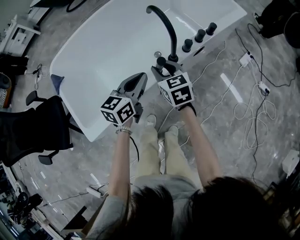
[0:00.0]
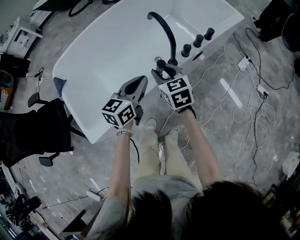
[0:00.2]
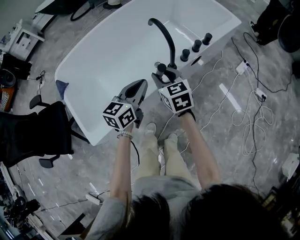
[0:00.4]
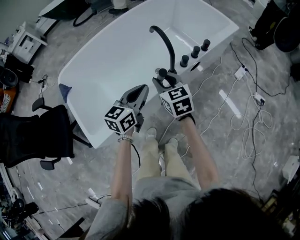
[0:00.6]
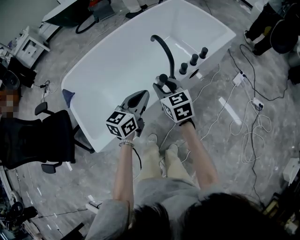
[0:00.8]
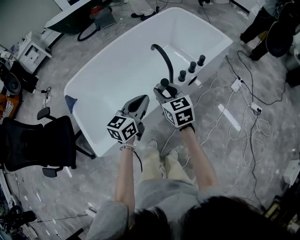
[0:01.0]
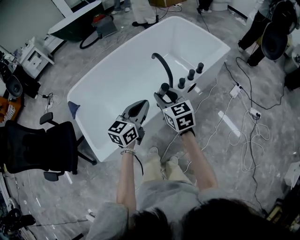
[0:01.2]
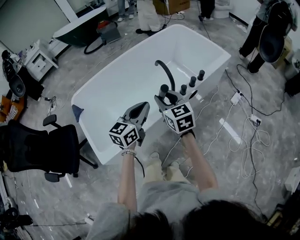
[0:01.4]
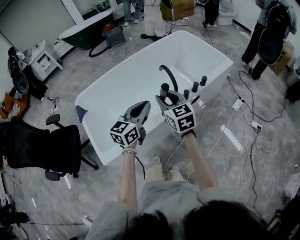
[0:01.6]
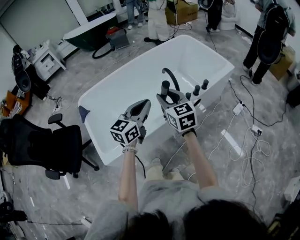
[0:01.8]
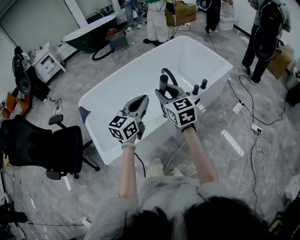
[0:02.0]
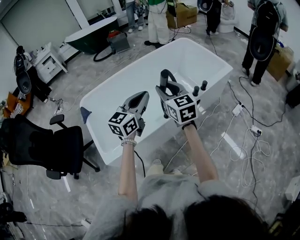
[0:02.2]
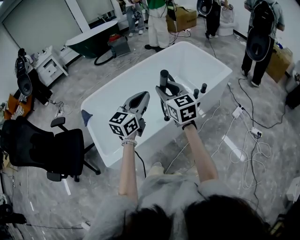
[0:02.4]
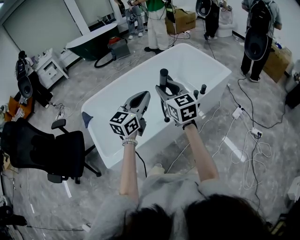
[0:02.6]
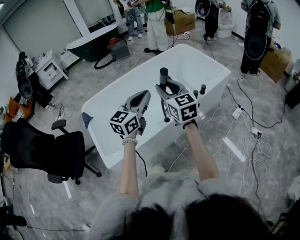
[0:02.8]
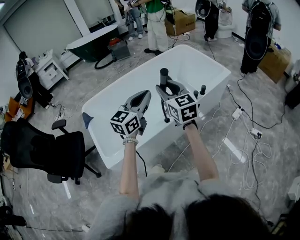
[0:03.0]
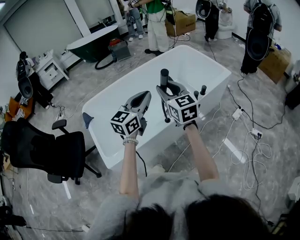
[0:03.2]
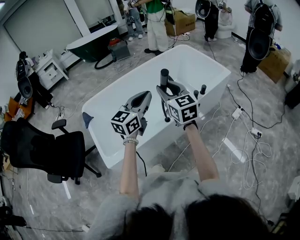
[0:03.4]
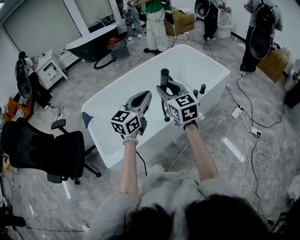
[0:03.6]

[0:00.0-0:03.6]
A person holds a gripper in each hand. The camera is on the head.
0:00.0 to 0:01.8: The two grippers go roughly 25 cm upward.
0:01.8 to 0:03.6: Both grippers travel together upward, about 5 cm.

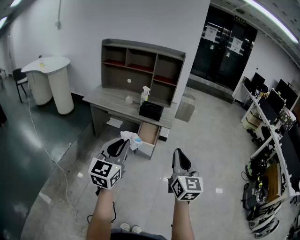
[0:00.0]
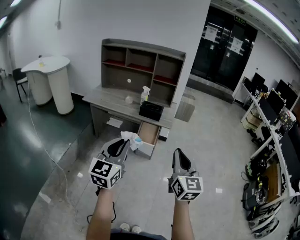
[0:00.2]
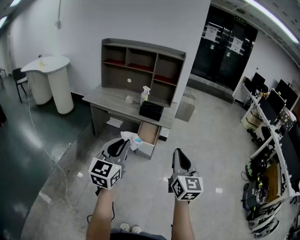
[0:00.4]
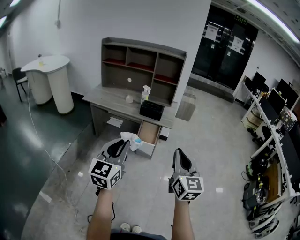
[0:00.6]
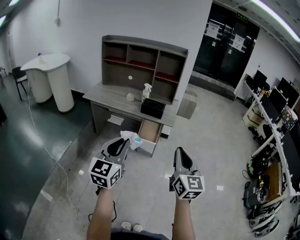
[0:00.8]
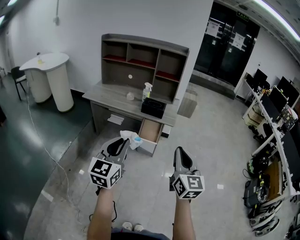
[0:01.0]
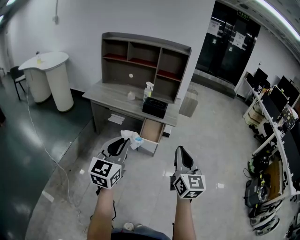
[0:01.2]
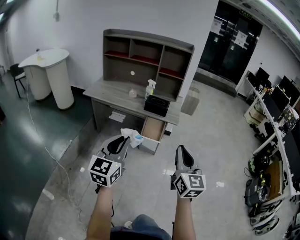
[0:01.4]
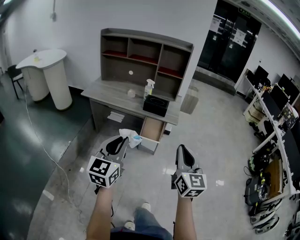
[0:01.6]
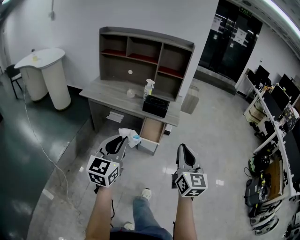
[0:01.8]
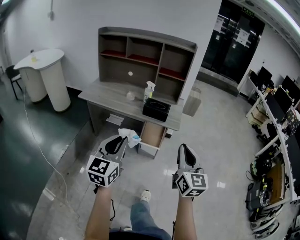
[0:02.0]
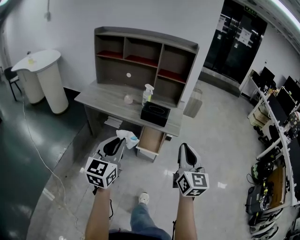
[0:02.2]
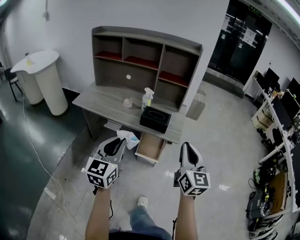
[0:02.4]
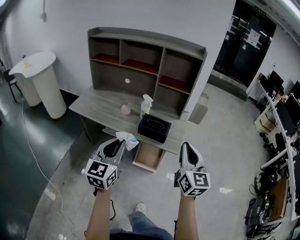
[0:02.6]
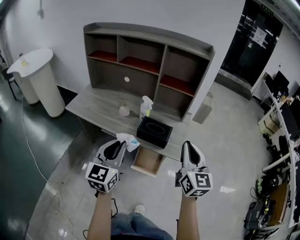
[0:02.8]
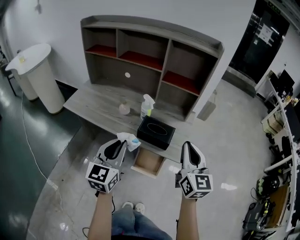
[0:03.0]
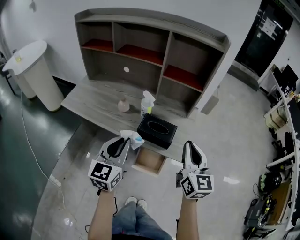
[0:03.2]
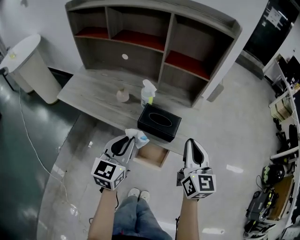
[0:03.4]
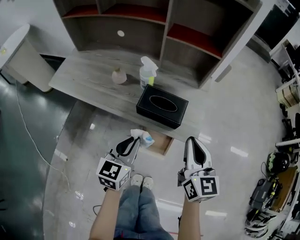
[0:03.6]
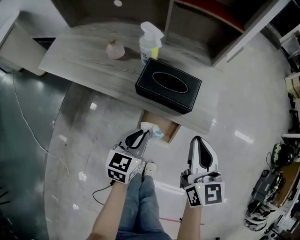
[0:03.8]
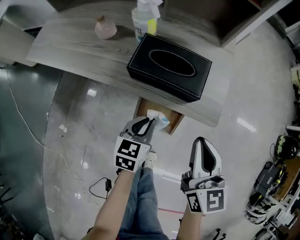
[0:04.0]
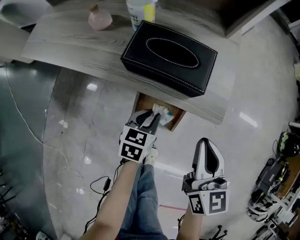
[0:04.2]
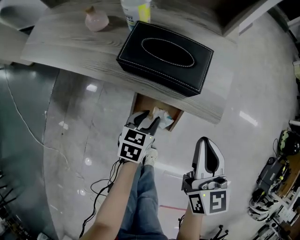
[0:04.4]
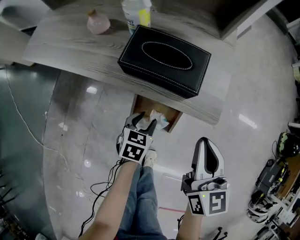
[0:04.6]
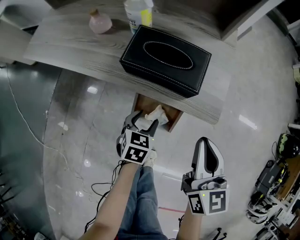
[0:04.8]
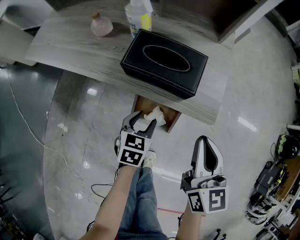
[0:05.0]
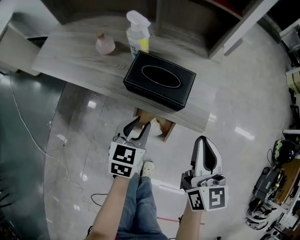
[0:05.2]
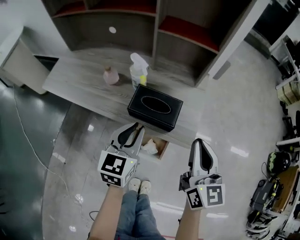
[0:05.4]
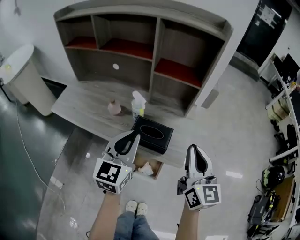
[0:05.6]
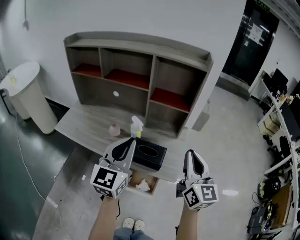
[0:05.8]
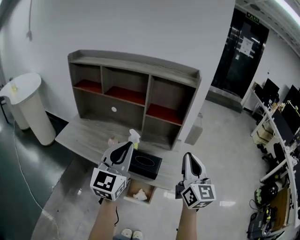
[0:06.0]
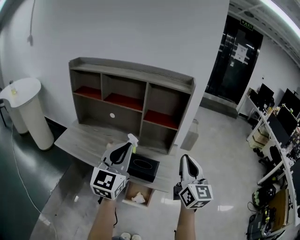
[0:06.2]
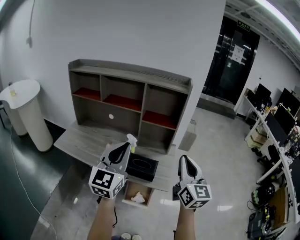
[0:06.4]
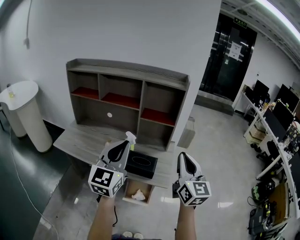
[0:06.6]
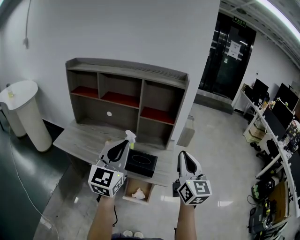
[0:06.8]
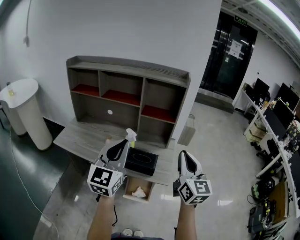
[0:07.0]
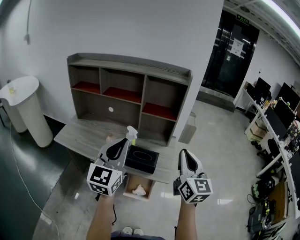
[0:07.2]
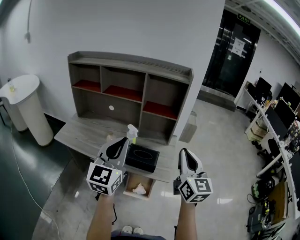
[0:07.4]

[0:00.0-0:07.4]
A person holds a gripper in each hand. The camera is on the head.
0:00.0 to 0:01.4: Both grippers travel together forward, approximately 5 cm.
0:01.4 to 0:03.0: The two grippers travel together, forward, about 40 cm.
0:03.0 to 0:04.4: The right gripper shifts roughly 30 cm downward, and turns by roughly 20 degrees; the left gripper heads downward, covering about 40 cm, tilts its fingers roughly 40 degrees downward, and opens.
0:04.4 to 0:06.0: The left gripper travels upward by roughly 50 cm, tilts its fingers about 50 degrees upward, and closes its fingers. Meanwhile the right gripper heads upward, covering some 35 cm, and rotates about 30 degrees.
0:06.0 to 0:07.4: The grippers move only a little.

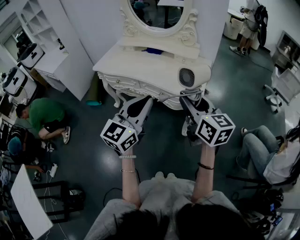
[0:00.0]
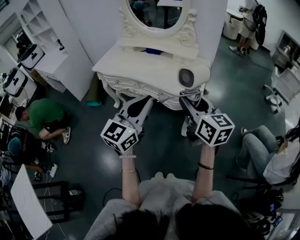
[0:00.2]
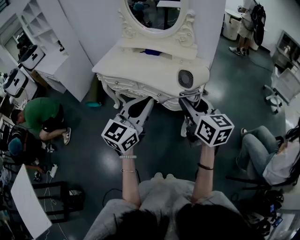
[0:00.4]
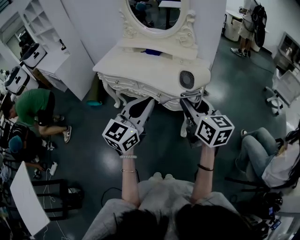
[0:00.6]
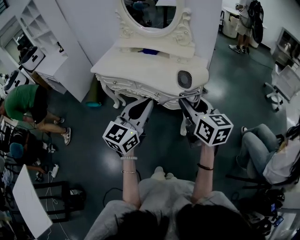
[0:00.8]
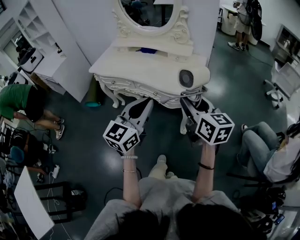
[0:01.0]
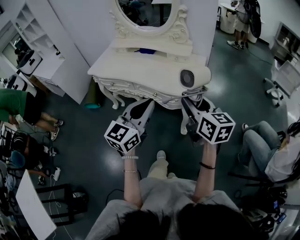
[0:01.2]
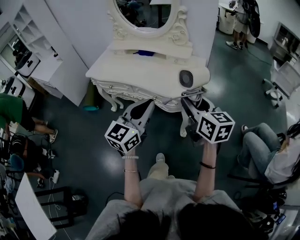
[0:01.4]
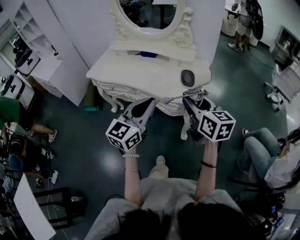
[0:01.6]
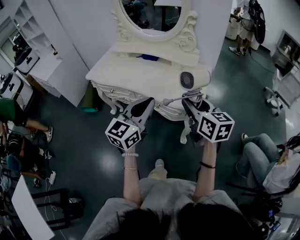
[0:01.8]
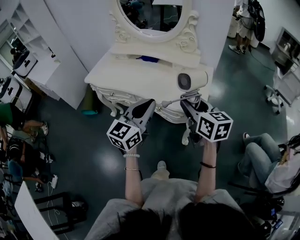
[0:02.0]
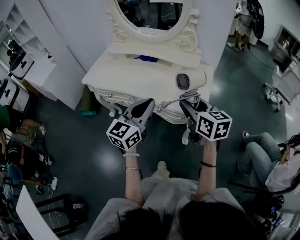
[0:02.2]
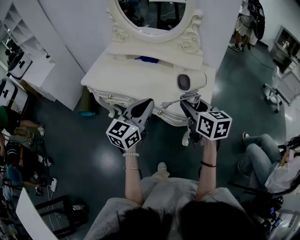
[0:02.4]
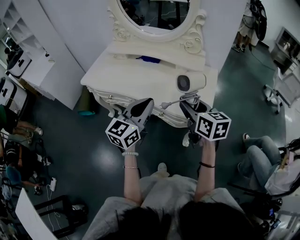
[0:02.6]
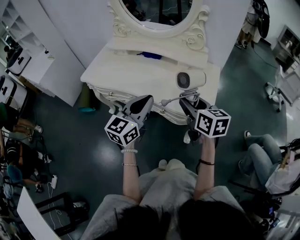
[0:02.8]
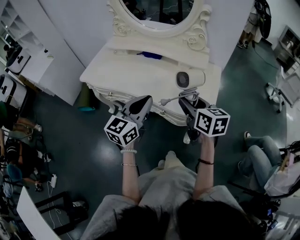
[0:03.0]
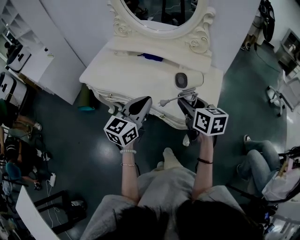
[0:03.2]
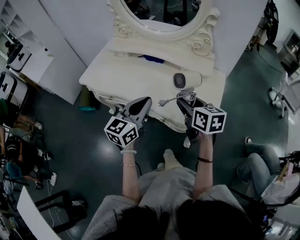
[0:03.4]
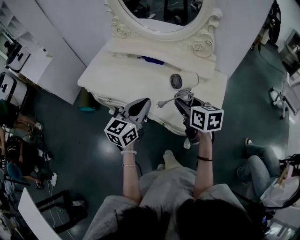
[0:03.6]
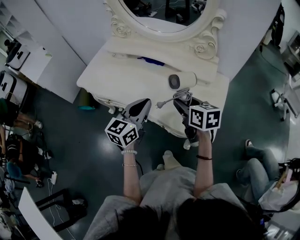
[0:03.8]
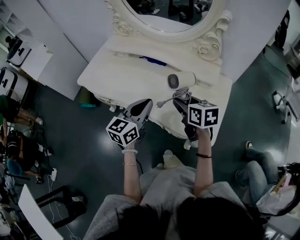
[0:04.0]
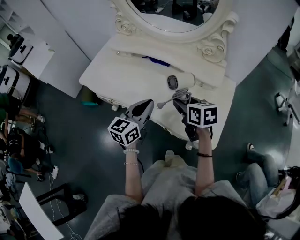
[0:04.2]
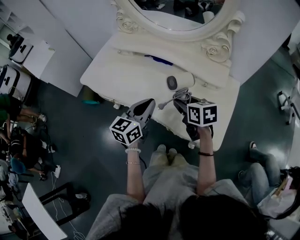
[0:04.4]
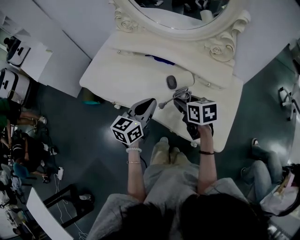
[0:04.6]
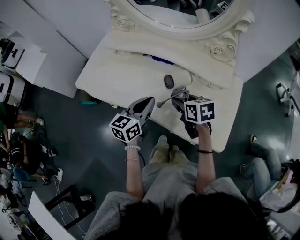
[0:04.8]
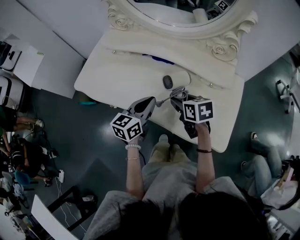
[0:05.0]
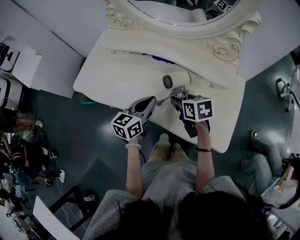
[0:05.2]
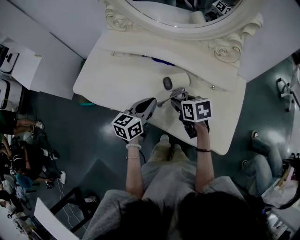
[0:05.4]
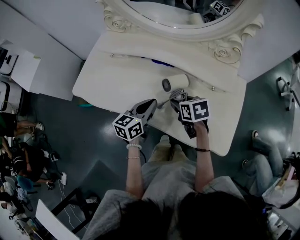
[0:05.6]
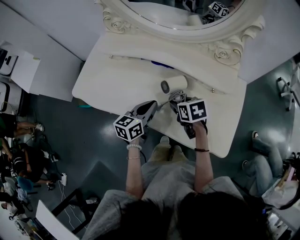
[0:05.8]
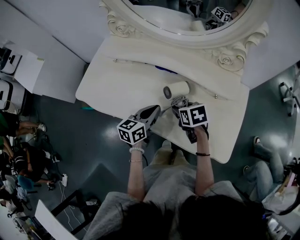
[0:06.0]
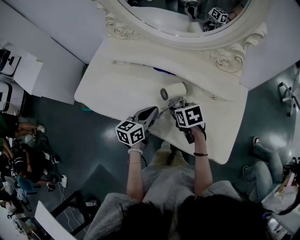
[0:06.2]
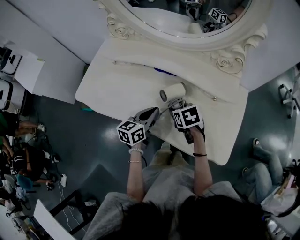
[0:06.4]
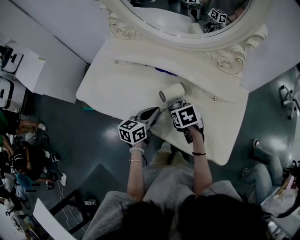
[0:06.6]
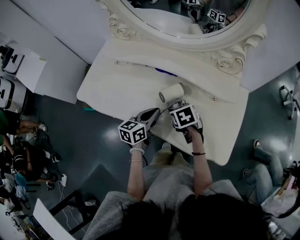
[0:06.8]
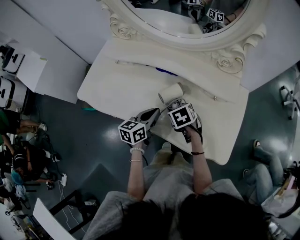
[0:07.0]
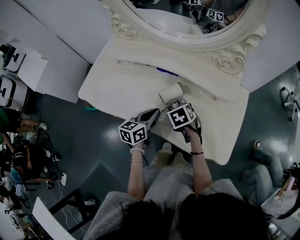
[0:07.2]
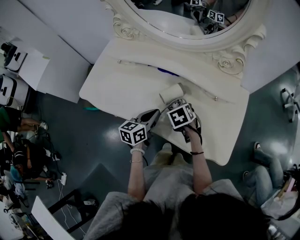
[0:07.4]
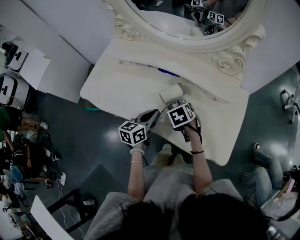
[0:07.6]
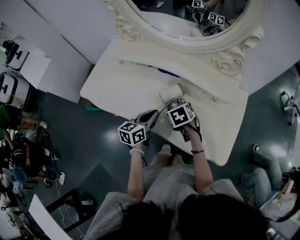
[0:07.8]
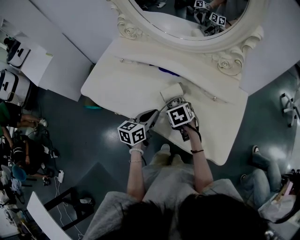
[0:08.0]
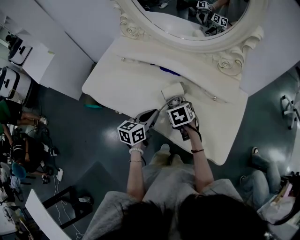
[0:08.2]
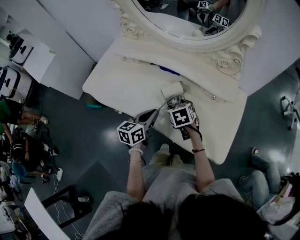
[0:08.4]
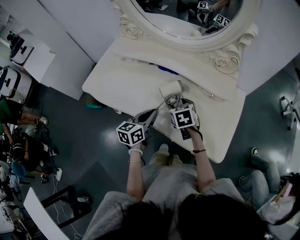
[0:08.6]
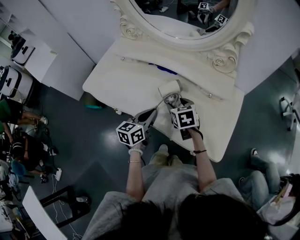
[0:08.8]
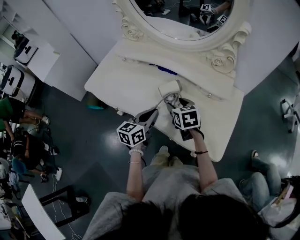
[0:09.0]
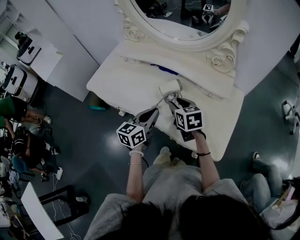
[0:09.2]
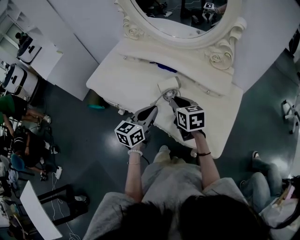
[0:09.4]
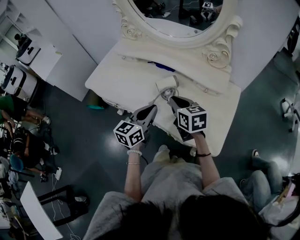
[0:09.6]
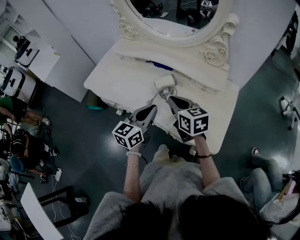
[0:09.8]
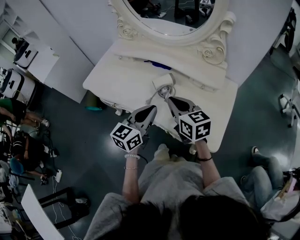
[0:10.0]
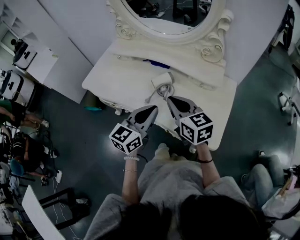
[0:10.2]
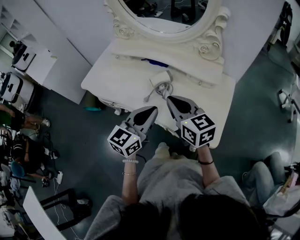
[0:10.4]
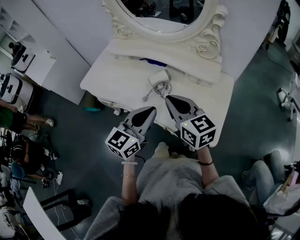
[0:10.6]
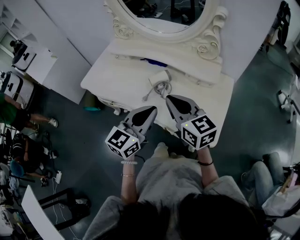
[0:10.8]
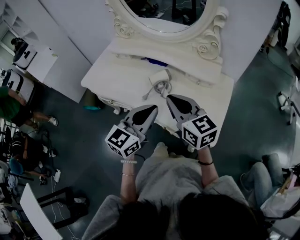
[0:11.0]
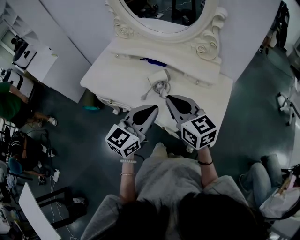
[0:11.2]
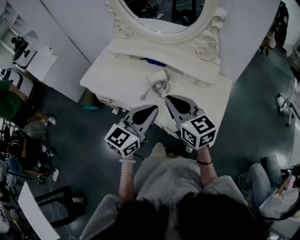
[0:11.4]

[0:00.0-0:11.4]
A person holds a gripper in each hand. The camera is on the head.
0:00.0 to 0:01.4: The left gripper shifts about 5 cm to the right and forward. The right gripper heads to the right, covering roughly 5 cm.
0:01.4 to 0:02.8: The left gripper travels forward and to the left by approximately 20 cm. Meanwhile the right gripper shifts approximately 20 cm forward, to the left and downward.
0:02.8 to 0:04.2: The two grippers go about 20 cm forward and downward.
0:04.2 to 0:05.6: The left gripper goes some 15 cm forward and downward. The right gripper is displaced downward, forward and to the left by roughly 15 cm.
0:05.6 to 0:07.2: The right gripper rotates about 20 degrees.
0:07.2 to 0:08.6: The grippers stay close to where they were, moving slightly.
0:08.6 to 0:10.0: The right gripper shifts approximately 20 cm upward and backward, tips its fingers upward by roughly 30 degrees, and closes. Meanwhile the left gripper moves upward, backward and to the right, about 15 cm.
0:10.0 to 0:11.4: The grippers both shift upward and backward by roughly 10 cm.

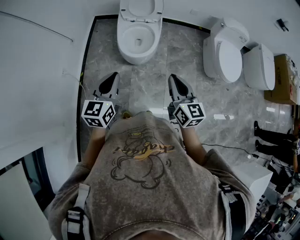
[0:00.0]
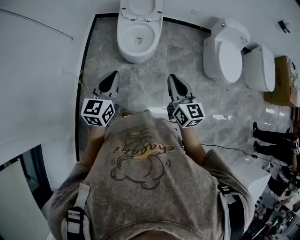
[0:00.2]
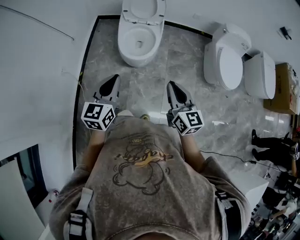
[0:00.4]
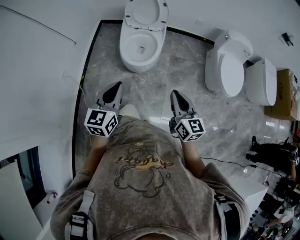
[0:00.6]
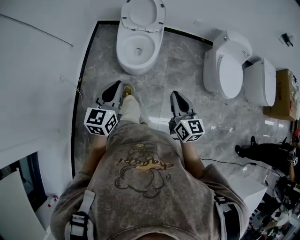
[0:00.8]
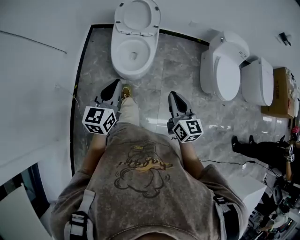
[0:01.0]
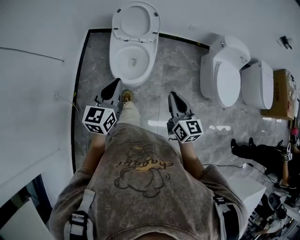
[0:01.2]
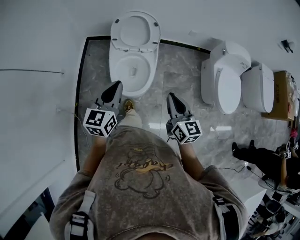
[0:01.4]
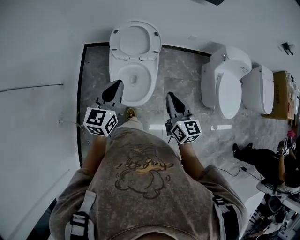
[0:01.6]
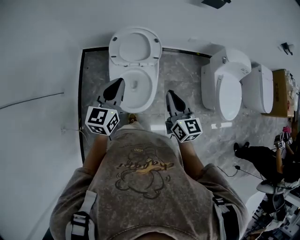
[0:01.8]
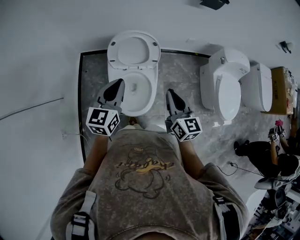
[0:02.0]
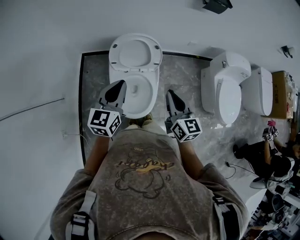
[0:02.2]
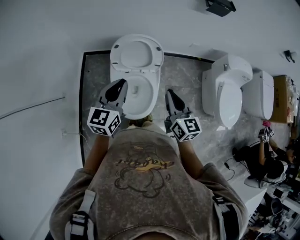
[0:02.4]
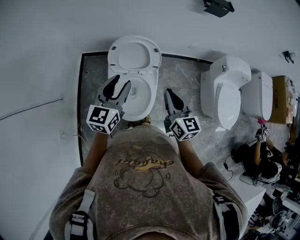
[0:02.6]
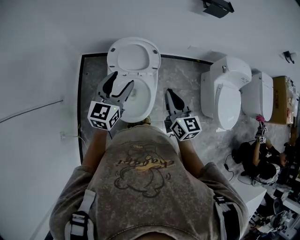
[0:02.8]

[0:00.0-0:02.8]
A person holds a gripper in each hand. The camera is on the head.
0:00.0 to 0:01.4: Both grippers move forward, some 25 cm.
0:01.4 to 0:02.8: Both grippers move forward, roughly 25 cm. The left gripper opens up.
